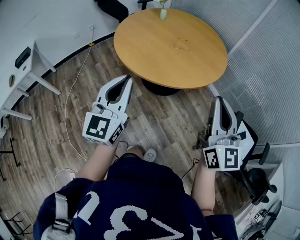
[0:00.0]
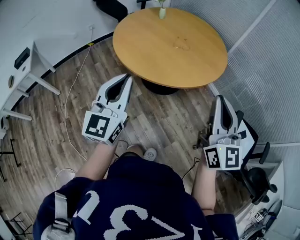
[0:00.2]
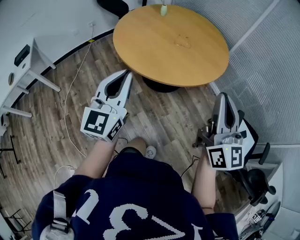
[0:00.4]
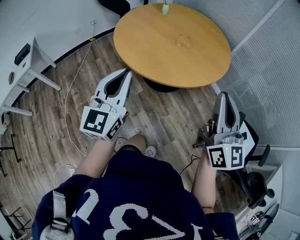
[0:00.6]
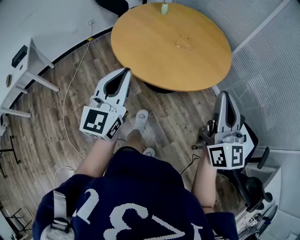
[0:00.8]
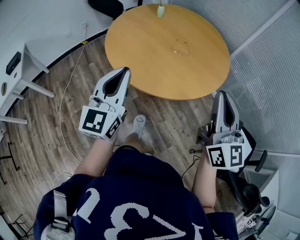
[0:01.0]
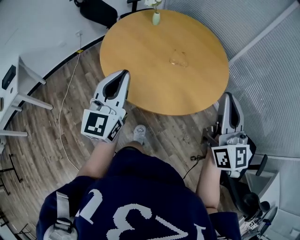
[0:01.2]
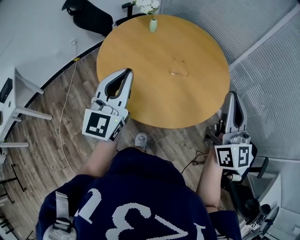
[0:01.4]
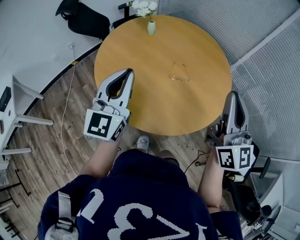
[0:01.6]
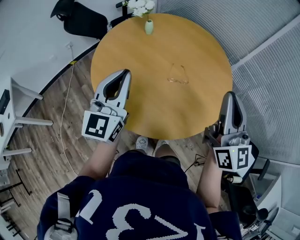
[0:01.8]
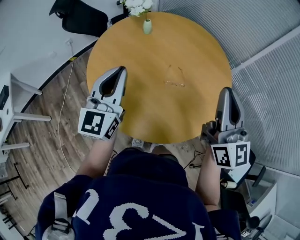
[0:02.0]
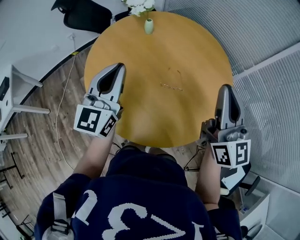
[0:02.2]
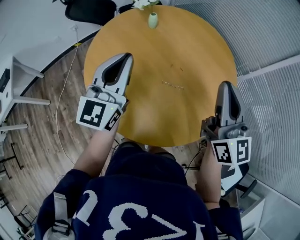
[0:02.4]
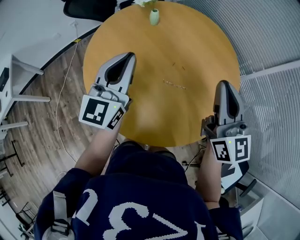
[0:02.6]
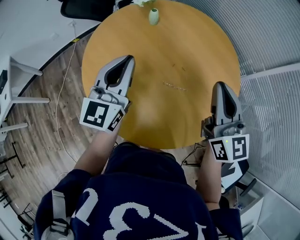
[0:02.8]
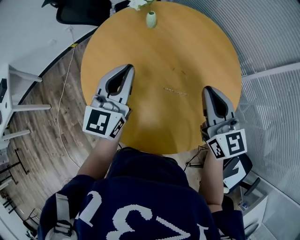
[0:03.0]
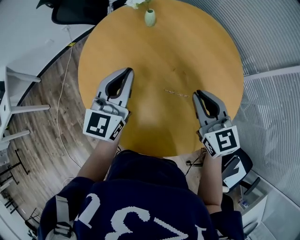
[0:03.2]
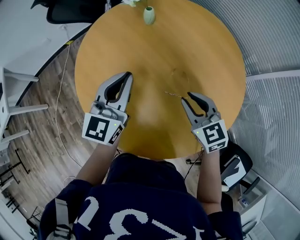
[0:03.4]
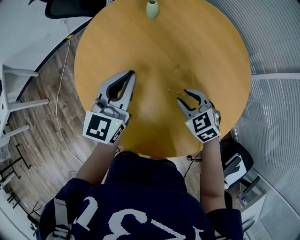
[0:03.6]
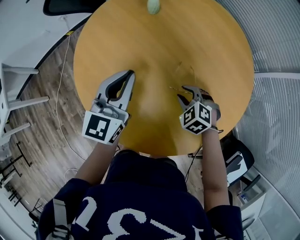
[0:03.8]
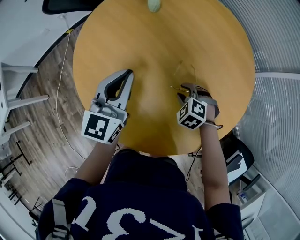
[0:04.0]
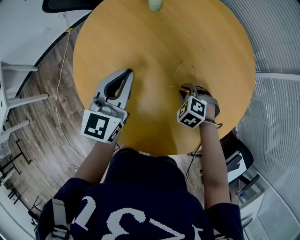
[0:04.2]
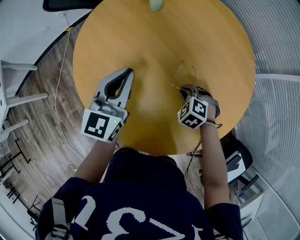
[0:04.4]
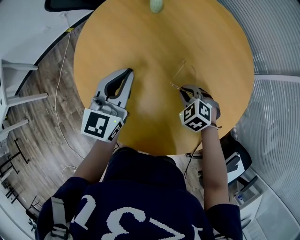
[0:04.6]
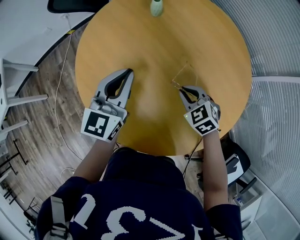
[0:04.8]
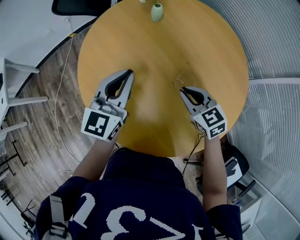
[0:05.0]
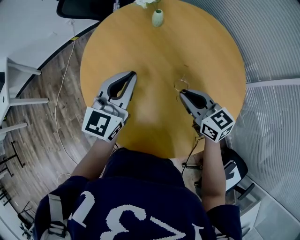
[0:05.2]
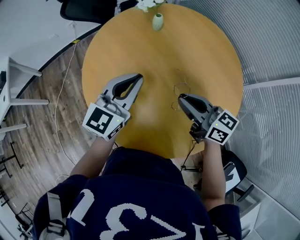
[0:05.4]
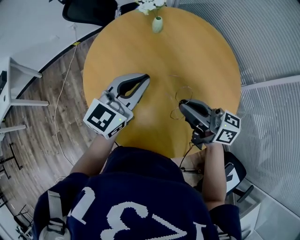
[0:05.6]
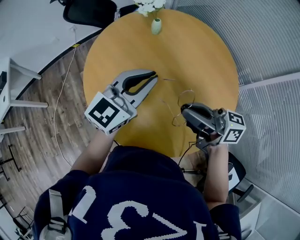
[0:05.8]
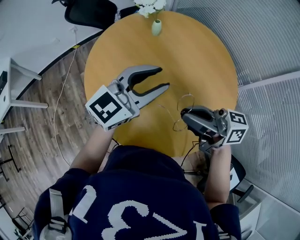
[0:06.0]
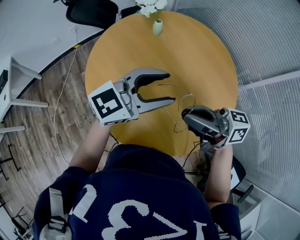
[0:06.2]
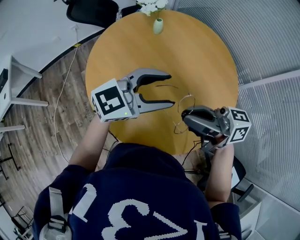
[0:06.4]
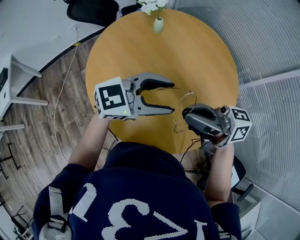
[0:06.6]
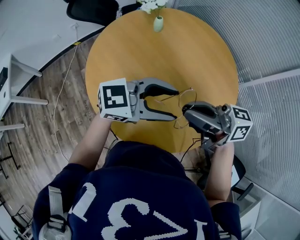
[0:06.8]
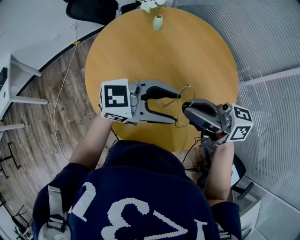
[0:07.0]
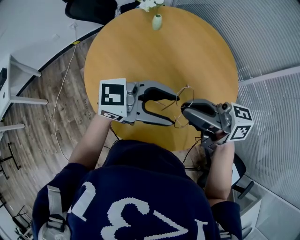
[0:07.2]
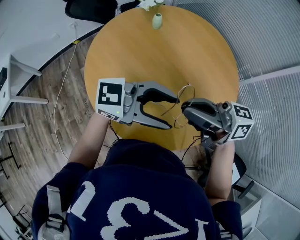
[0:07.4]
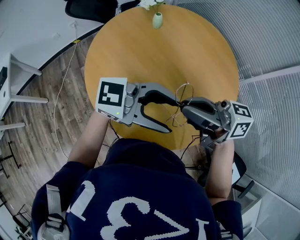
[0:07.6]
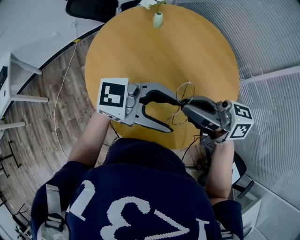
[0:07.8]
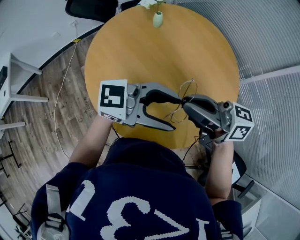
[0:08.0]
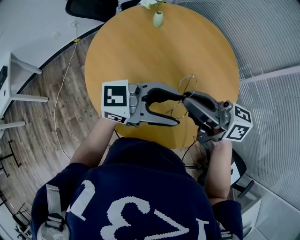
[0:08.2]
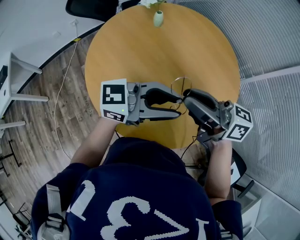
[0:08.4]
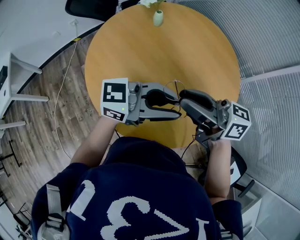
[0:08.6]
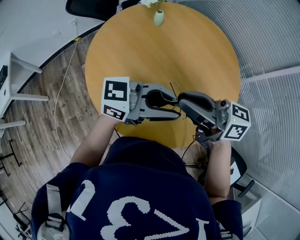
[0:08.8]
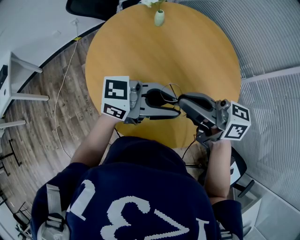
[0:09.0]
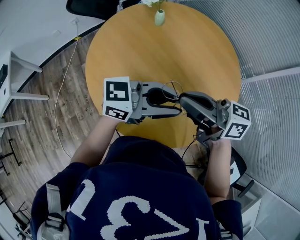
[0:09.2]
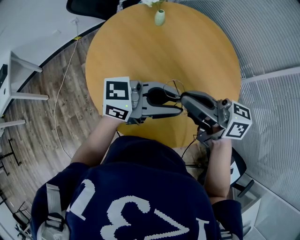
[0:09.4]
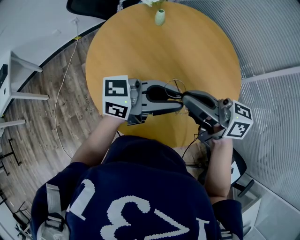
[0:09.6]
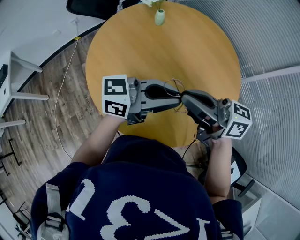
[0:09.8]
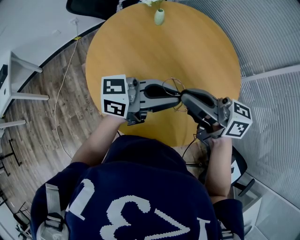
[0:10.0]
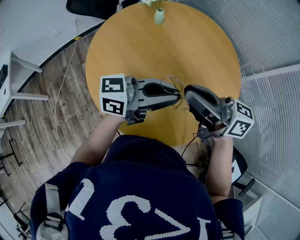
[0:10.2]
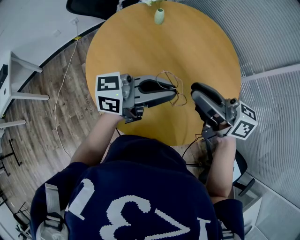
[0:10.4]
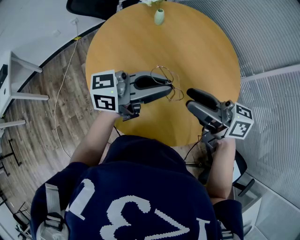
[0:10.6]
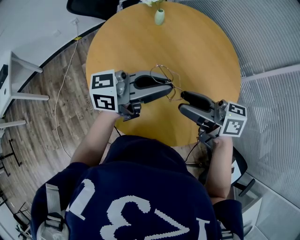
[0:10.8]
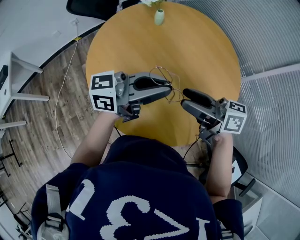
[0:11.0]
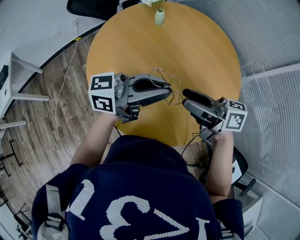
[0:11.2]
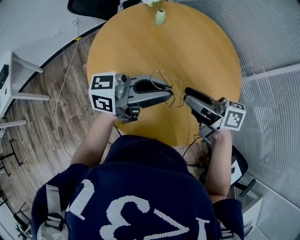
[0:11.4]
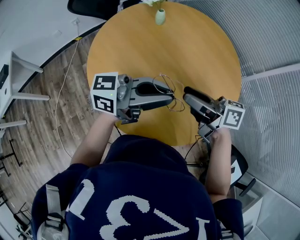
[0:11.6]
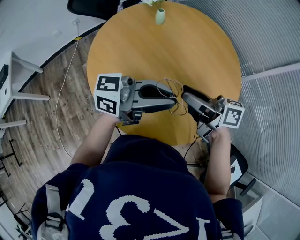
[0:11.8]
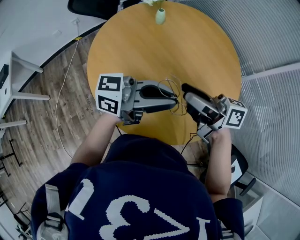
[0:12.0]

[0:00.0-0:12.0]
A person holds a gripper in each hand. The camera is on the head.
0:00.0 to 0:01.6: The two grippers go about 35 cm forward.
0:01.6 to 0:03.0: Both grippers move forward and downward, approximately 20 cm. The right gripper rotates about 30 degrees.
0:03.0 to 0:04.4: The left gripper shifts roughly 10 cm downward, while the right gripper is displaced downward by roughly 30 cm, angles its fingers downward, by about 60 degrees, and opens, then closes once more.
0:04.4 to 0:06.0: The left gripper shifts some 15 cm upward, rotates approximately 30 degrees, and opens. The right gripper goes about 35 cm upward, and tips its fingers upward by roughly 70 degrees.
0:06.0 to 0:07.6: The left gripper moves about 15 cm, turns by some 50 degrees, and opens up.
0:07.6 to 0:09.0: The left gripper closes up.
0:09.0 to 0:10.4: The grippers make only small movements.
0:10.4 to 0:12.0: The right gripper opens.

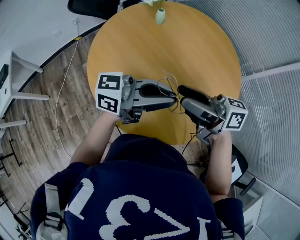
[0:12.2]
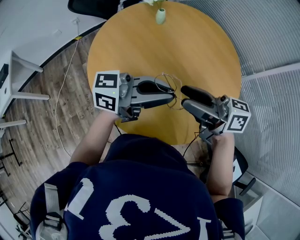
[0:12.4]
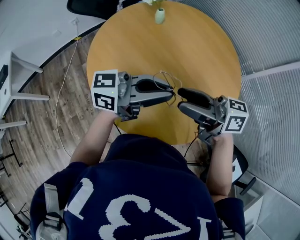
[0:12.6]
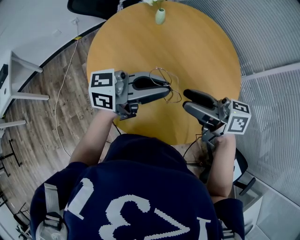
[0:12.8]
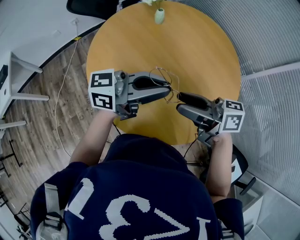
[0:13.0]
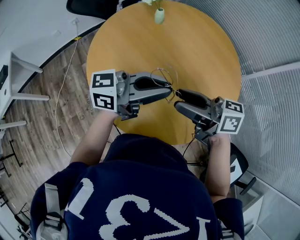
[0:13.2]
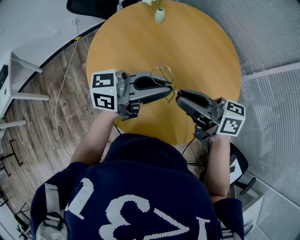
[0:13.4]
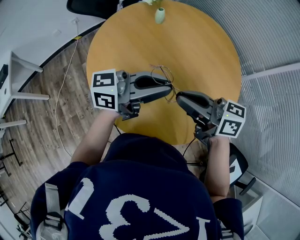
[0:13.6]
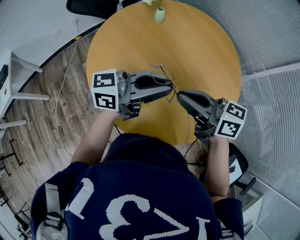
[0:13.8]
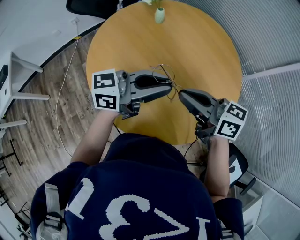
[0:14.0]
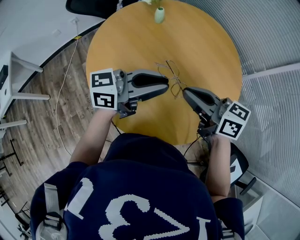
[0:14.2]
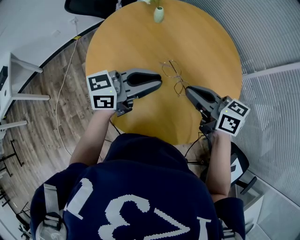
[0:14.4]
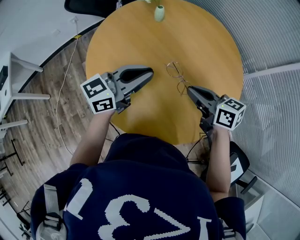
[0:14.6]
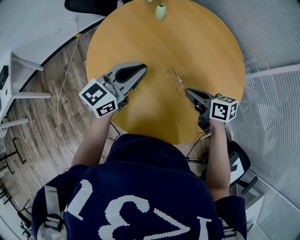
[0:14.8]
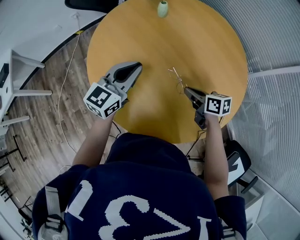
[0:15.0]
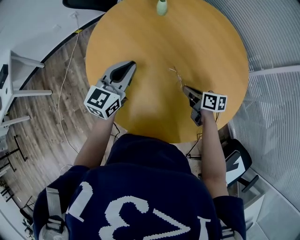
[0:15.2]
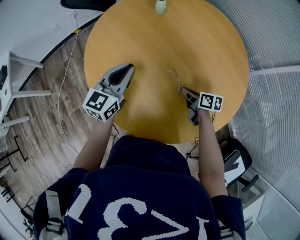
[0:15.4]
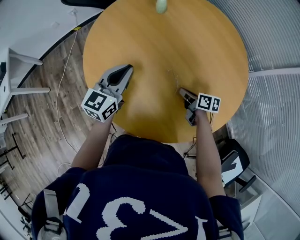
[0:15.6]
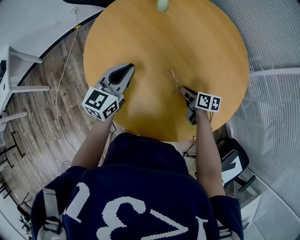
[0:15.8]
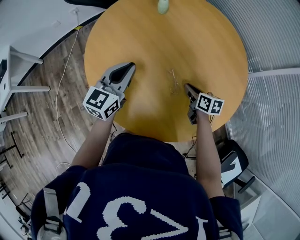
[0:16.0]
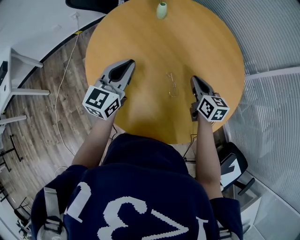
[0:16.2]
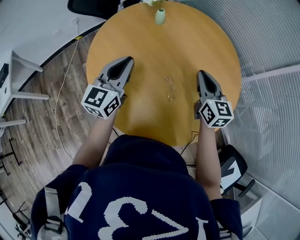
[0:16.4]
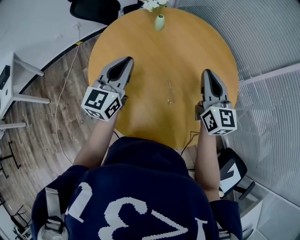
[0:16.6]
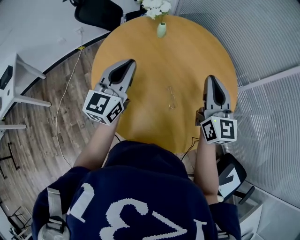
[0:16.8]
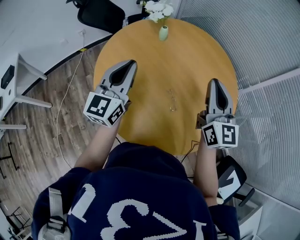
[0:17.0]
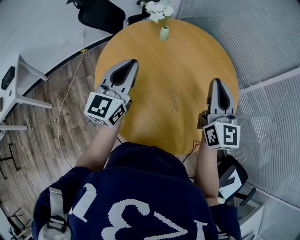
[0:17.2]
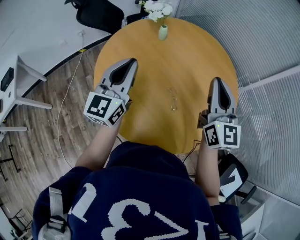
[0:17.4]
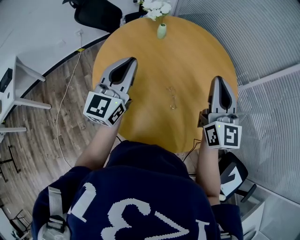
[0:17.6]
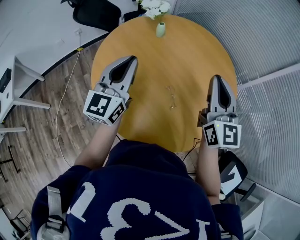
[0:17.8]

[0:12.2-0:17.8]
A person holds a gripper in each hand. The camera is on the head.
0:12.2 to 0:13.6: The right gripper closes.
0:13.6 to 0:15.0: The left gripper moves roughly 15 cm, and turns by approximately 50 degrees, while the right gripper heads downward, covering approximately 20 cm, and turns by approximately 30 degrees.
0:15.0 to 0:16.4: The right gripper heads upward, covering some 15 cm, and turns by about 50 degrees.
0:16.4 to 0:17.8: The right gripper heads upward, covering approximately 15 cm, and turns by some 20 degrees. Meanwhile the left gripper moves upward, some 10 cm.

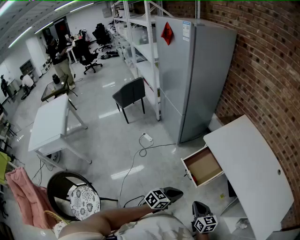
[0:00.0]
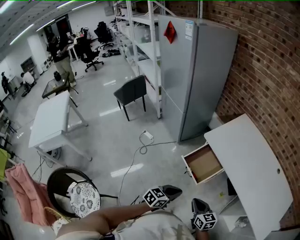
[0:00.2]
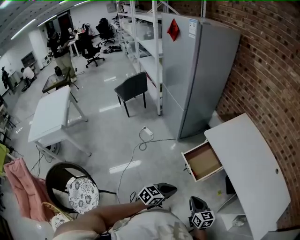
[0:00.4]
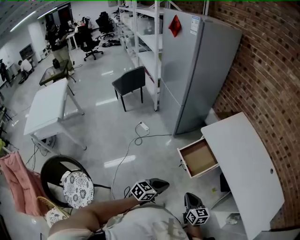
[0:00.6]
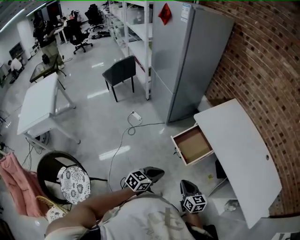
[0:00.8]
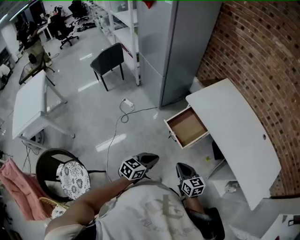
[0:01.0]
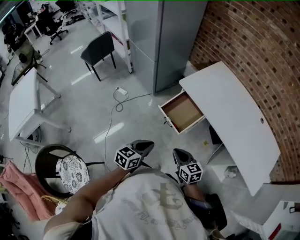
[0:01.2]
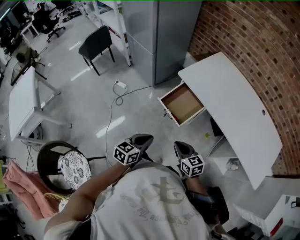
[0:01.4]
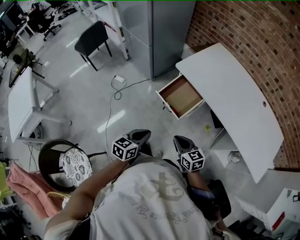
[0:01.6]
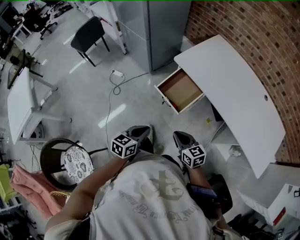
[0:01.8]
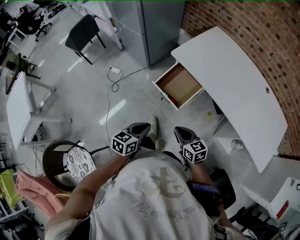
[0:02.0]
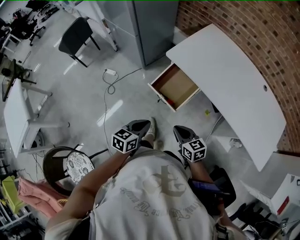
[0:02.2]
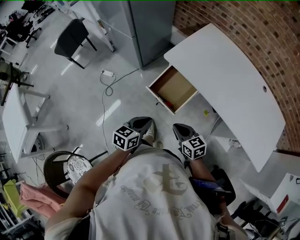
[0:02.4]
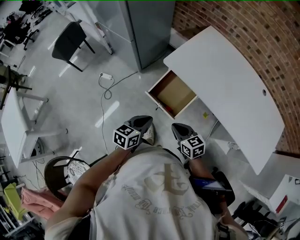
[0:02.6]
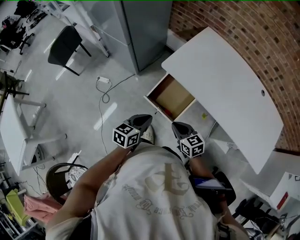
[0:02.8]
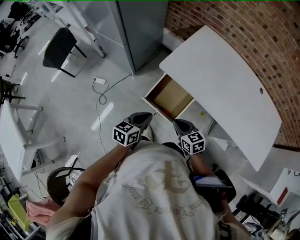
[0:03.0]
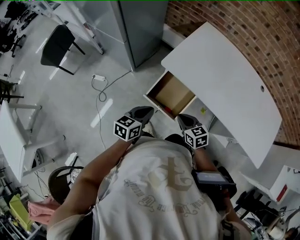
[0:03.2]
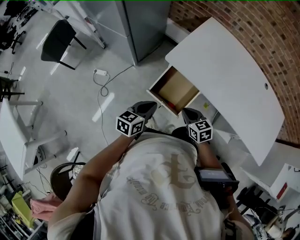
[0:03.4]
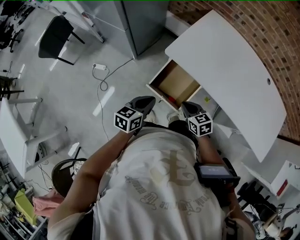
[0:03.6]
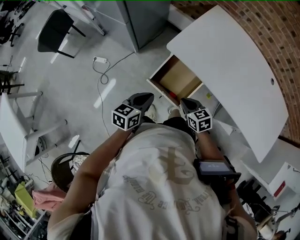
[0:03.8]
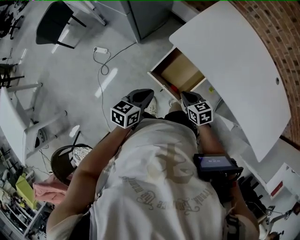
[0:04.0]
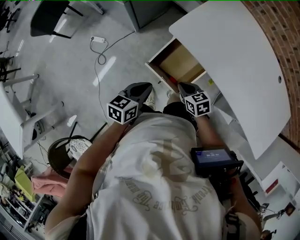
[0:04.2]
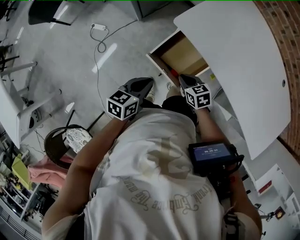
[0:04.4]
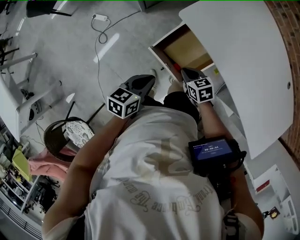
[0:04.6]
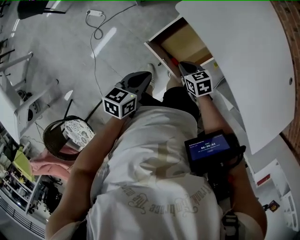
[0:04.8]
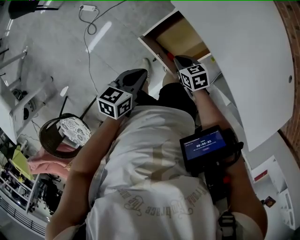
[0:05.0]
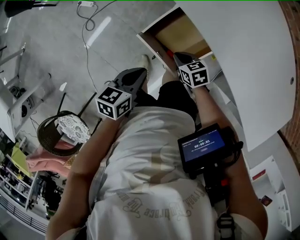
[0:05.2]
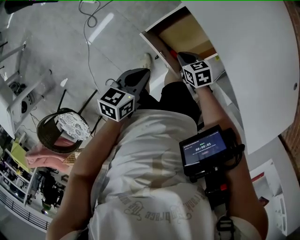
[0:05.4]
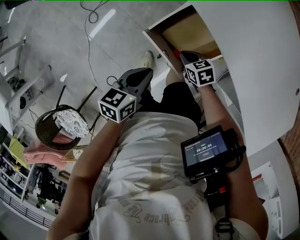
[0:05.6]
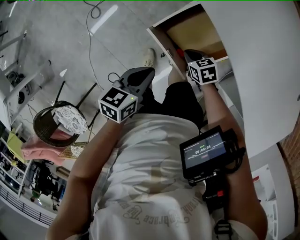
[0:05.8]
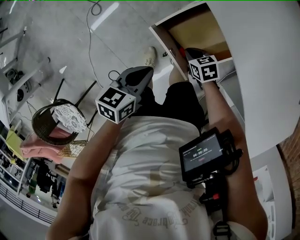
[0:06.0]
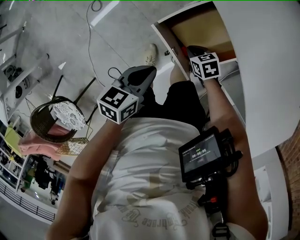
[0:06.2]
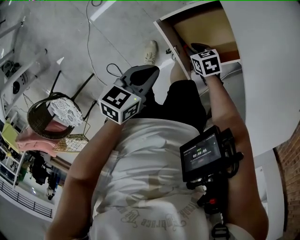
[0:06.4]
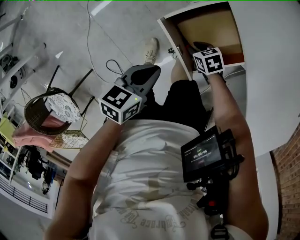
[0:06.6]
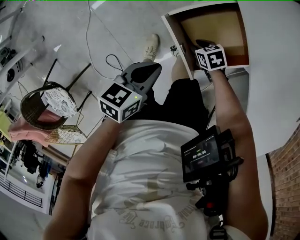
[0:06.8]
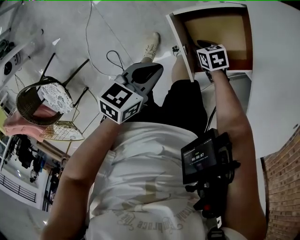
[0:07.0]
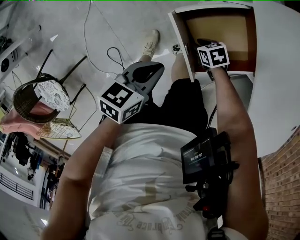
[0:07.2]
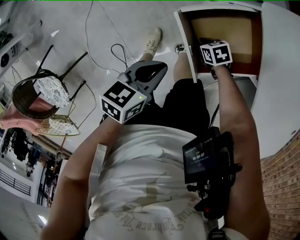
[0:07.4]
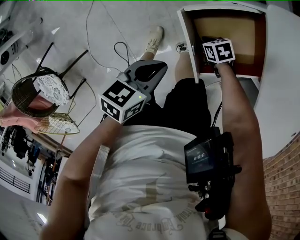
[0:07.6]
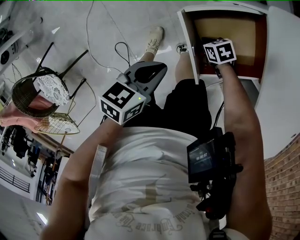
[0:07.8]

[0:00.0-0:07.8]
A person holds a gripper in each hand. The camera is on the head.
0:00.0 to 0:01.6: The left gripper goes approximately 5 cm to the left.
0:01.6 to 0:03.2: The two grippers go some 25 cm forward.
0:03.2 to 0:04.6: The left gripper heads downward, covering about 10 cm. The right gripper is displaced downward and forward by roughly 15 cm, and changes its angle by roughly 20 degrees.
0:04.6 to 0:06.2: The left gripper is displaced downward by roughly 5 cm, while the right gripper goes about 15 cm downward.
0:06.2 to 0:07.8: The right gripper shifts roughly 15 cm downward, and turns by approximately 20 degrees. Meanwhile the left gripper travels downward by roughly 10 cm.
